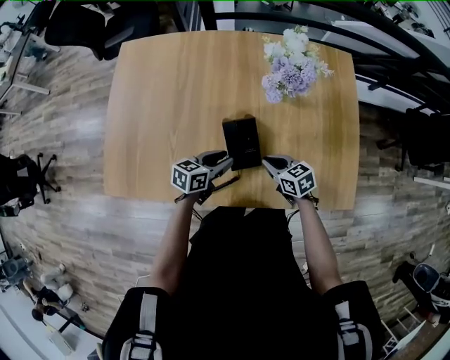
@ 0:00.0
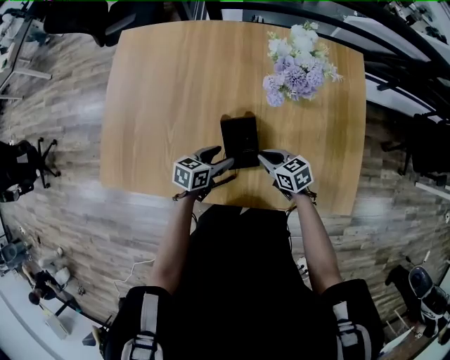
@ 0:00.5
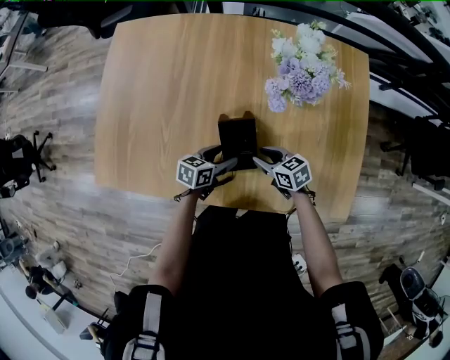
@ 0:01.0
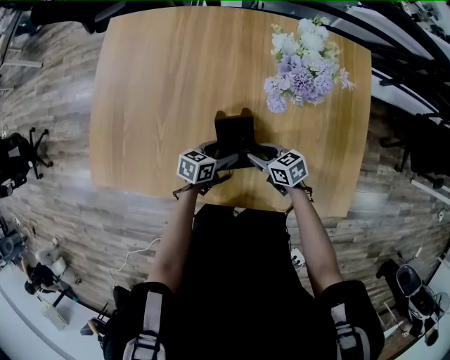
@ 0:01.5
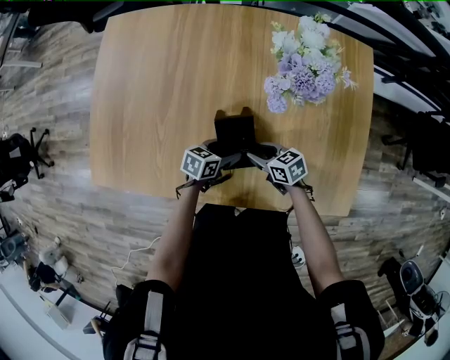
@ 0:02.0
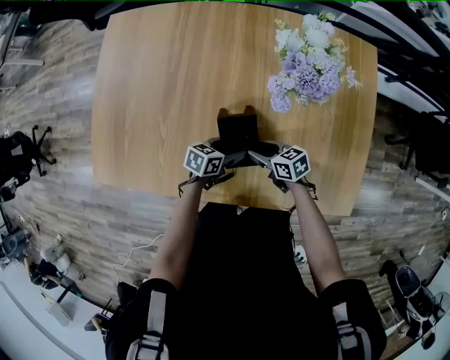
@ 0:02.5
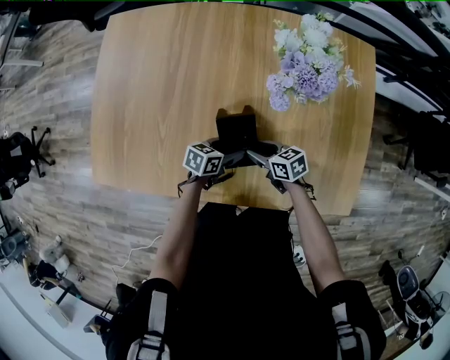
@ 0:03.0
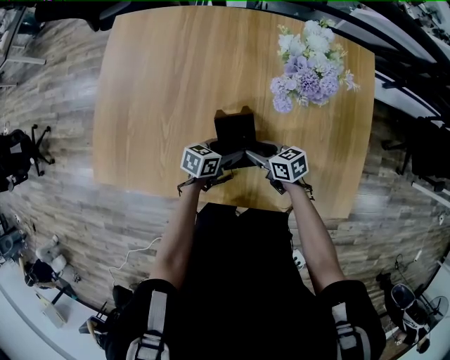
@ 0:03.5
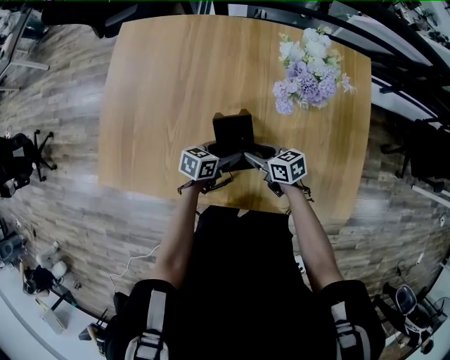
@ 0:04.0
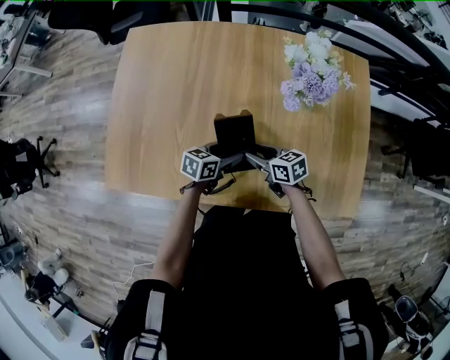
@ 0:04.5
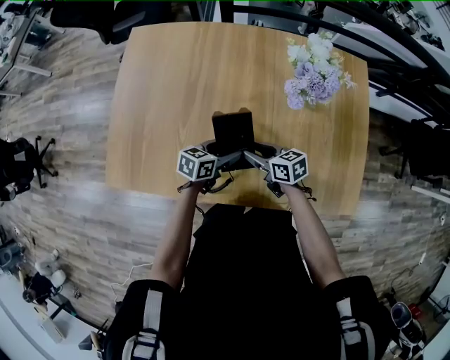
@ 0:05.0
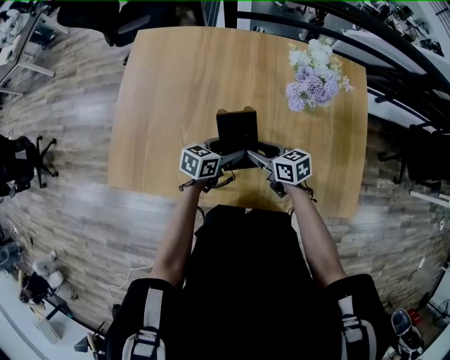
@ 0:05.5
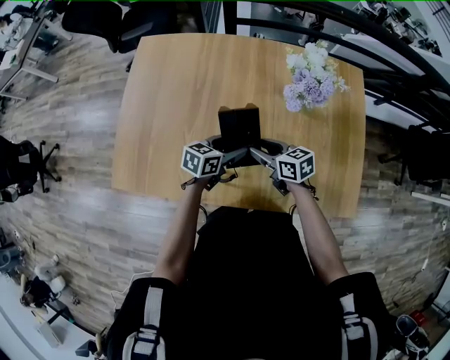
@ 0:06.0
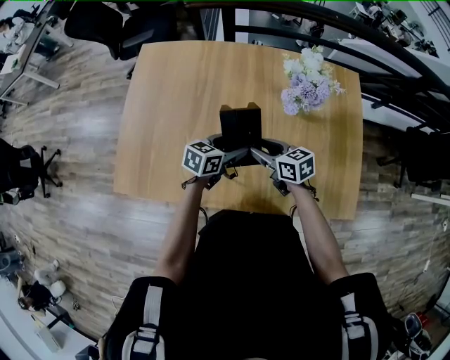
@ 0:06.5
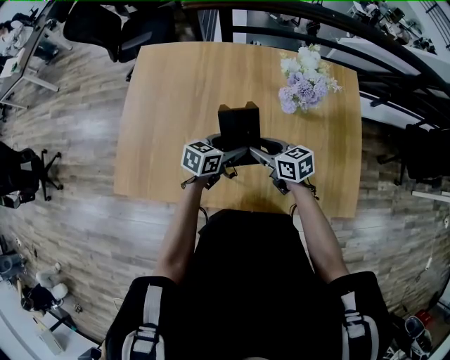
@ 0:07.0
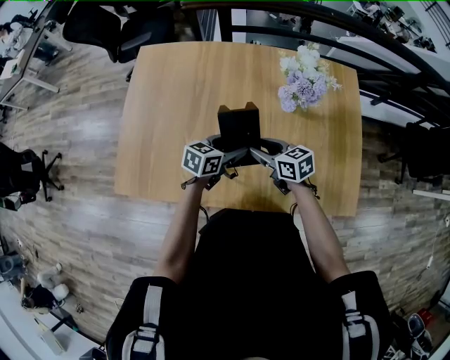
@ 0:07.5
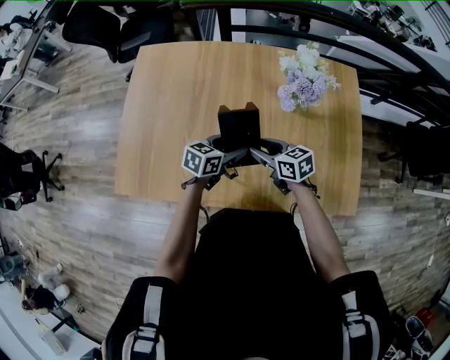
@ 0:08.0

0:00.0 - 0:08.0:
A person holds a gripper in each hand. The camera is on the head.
0:00.0 - 0:02.0: The right gripper goes some 5 cm downward, and opens; the left gripper goes about 10 cm downward, and opens.
0:02.0 - 0:04.0: The right gripper ends up roughly 5 cm from where it was; the left gripper moves some 5 cm.
0:04.0 - 0:06.0: The grippers both shift upward by roughly 10 cm.
0:06.0 - 0:08.0: There are only small adjustments of the grippers.

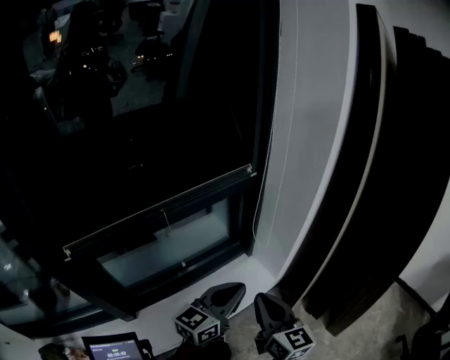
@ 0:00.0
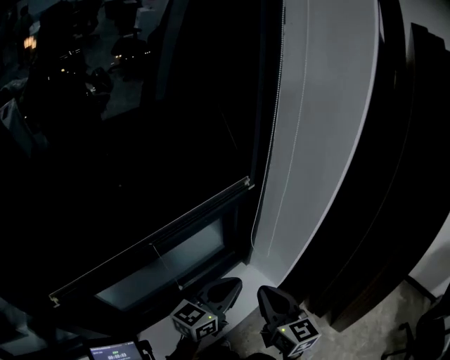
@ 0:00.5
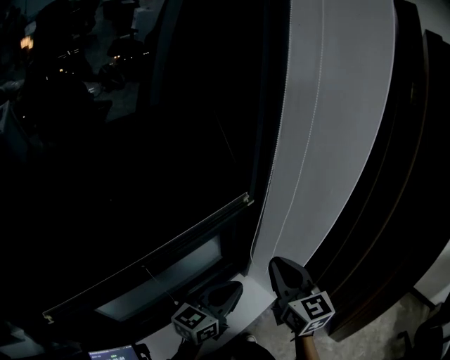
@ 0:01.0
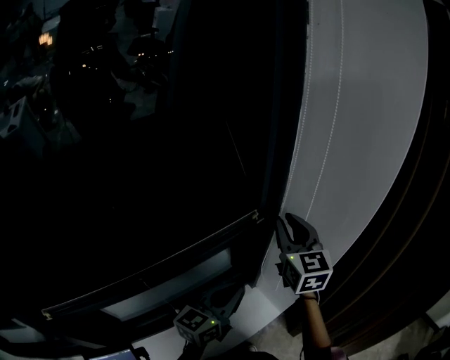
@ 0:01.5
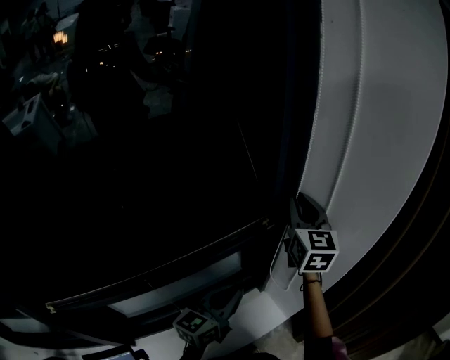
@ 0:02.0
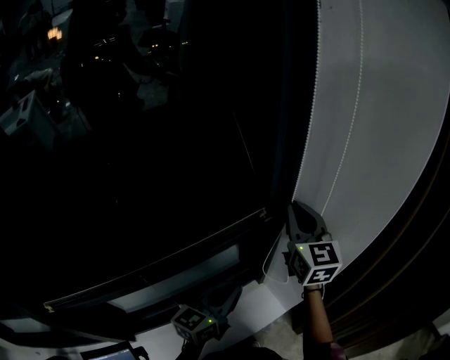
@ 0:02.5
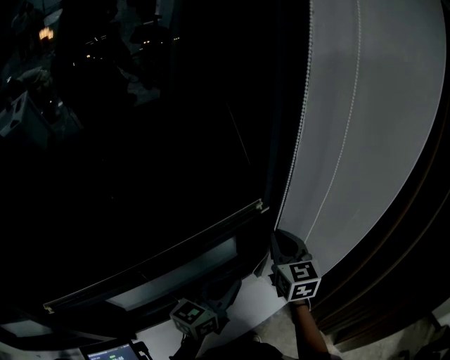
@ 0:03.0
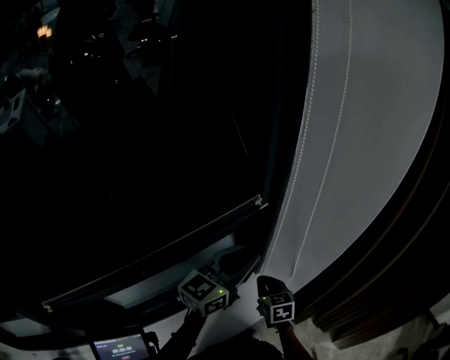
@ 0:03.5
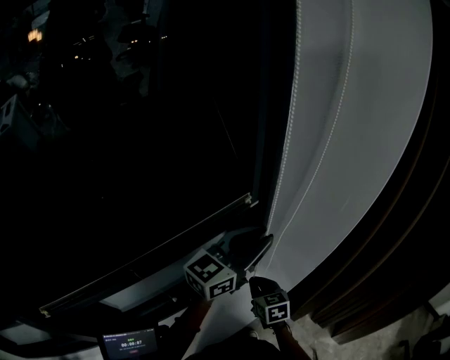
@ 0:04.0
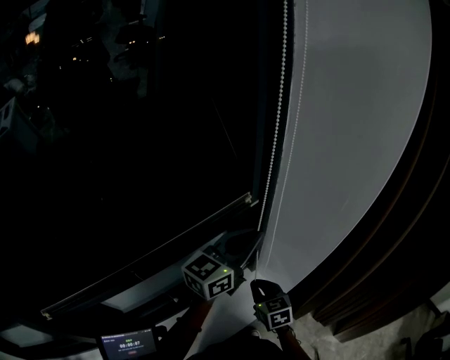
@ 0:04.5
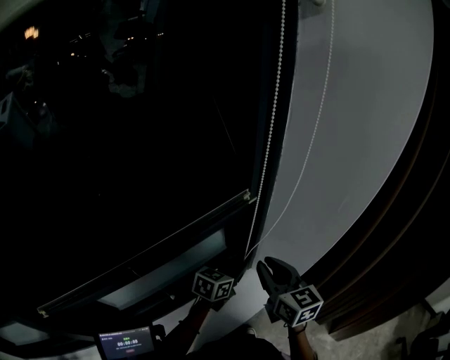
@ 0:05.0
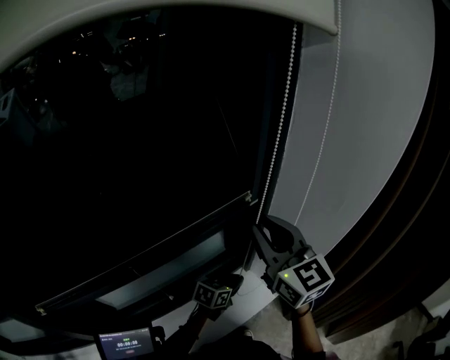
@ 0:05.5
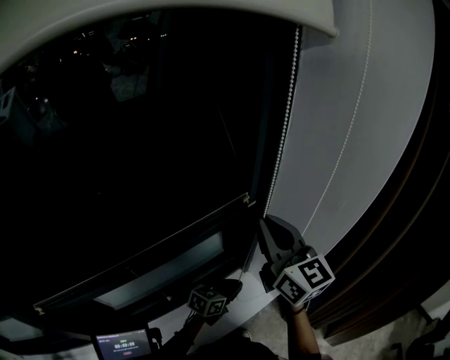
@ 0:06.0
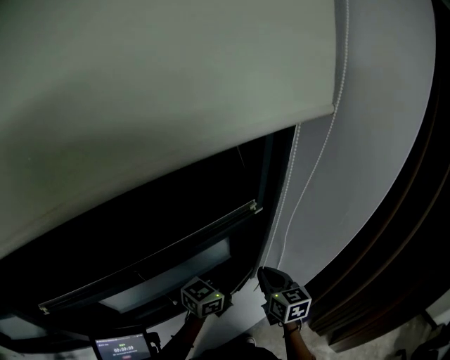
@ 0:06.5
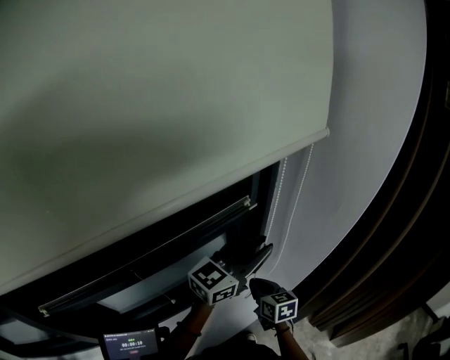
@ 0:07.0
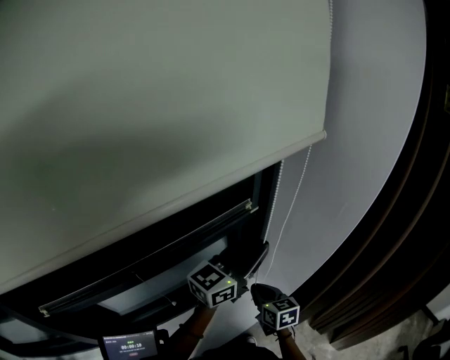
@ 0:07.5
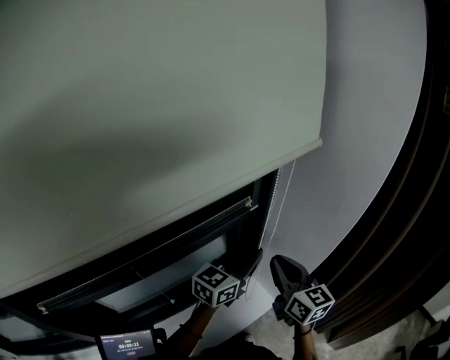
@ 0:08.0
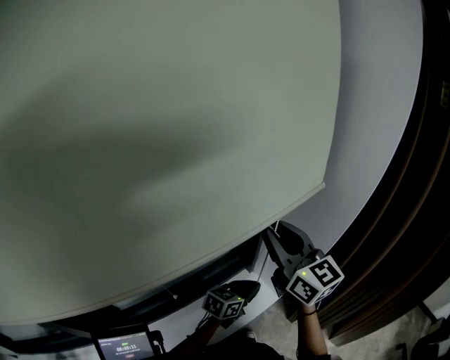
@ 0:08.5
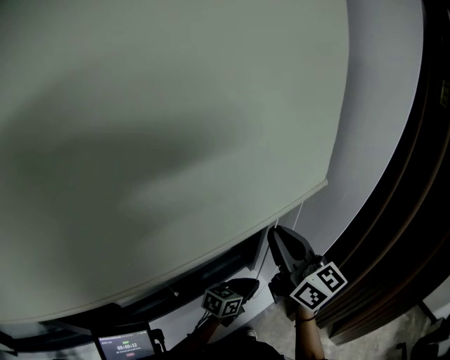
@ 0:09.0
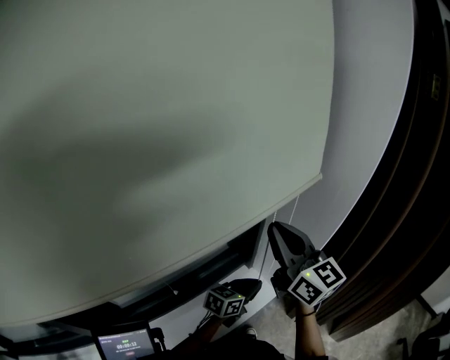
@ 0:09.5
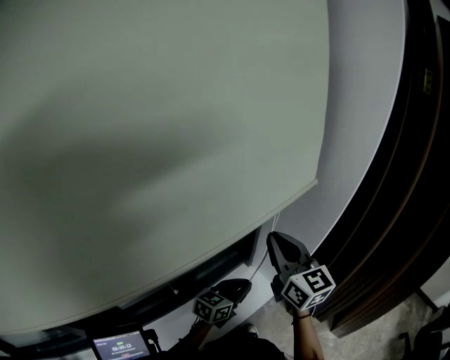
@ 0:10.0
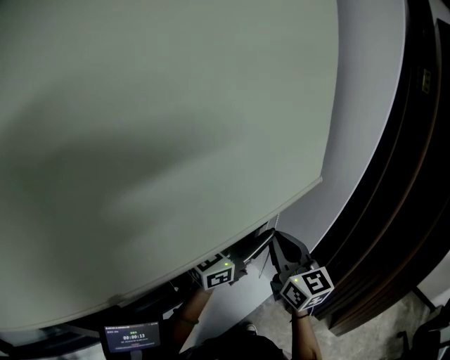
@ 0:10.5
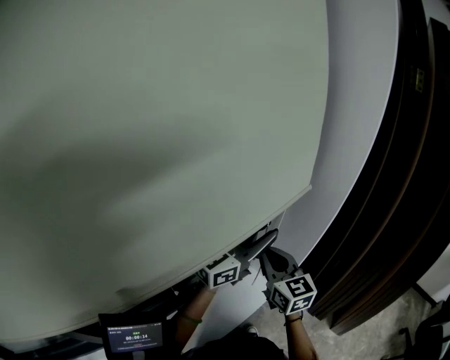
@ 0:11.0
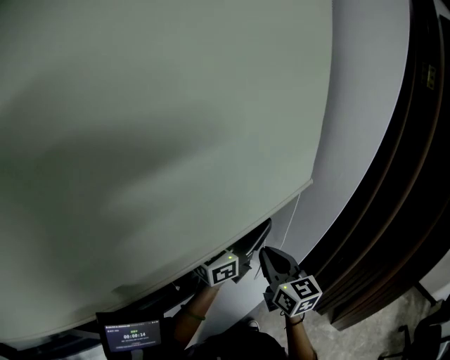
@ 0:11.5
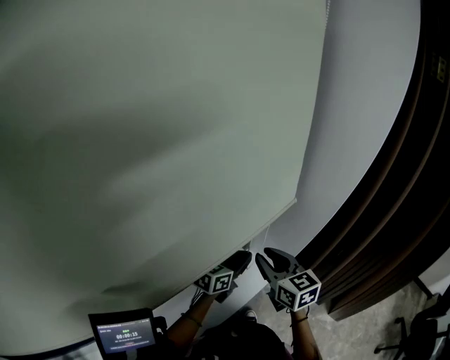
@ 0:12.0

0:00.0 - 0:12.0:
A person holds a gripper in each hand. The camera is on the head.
0:00.0 - 0:02.0: The left gripper moves forward, roughly 25 cm. The right gripper goes some 50 cm forward, and changes its angle by about 20 degrees.
0:02.0 - 0:04.0: The right gripper is displaced downward and backward by approximately 35 cm, and points its fingers some 30 degrees further downward, while the left gripper heads upward, to the right and forward, covering approximately 15 cm, changes its angle by about 20 degrees, and opens its fingers.
0:04.0 - 0:06.0: The left gripper moves downward, roughly 30 cm, tips its fingers downward by roughly 30 degrees, and closes up. Meanwhile the right gripper moves upward, some 30 cm, and points its fingers approximately 40 degrees further upward.
0:06.0 - 0:08.0: The left gripper shifts approximately 20 cm upward, and changes its angle by approximately 30 degrees; the right gripper moves downward and to the right, some 15 cm.
0:08.0 - 0:10.0: The left gripper travels downward and backward by about 20 cm, and turns by approximately 20 degrees.
0:10.0 - 0:12.0: The left gripper moves roughly 25 cm upward and comes back, while the right gripper moves downward and backward, roughly 15 cm.

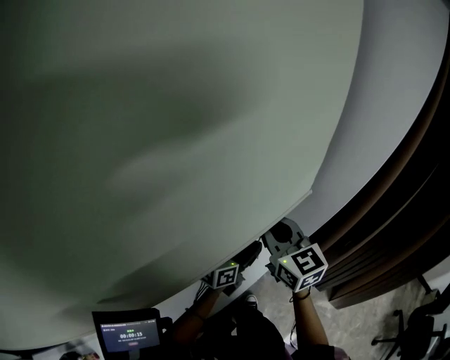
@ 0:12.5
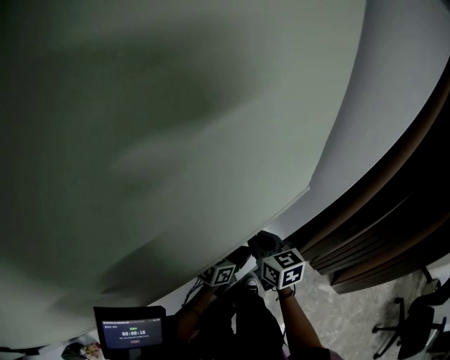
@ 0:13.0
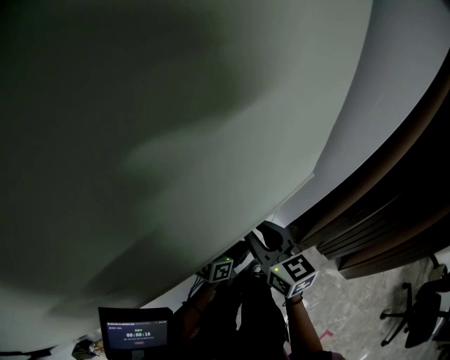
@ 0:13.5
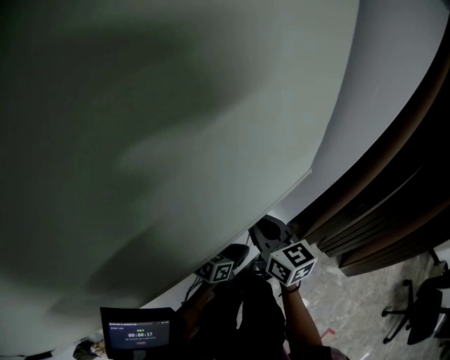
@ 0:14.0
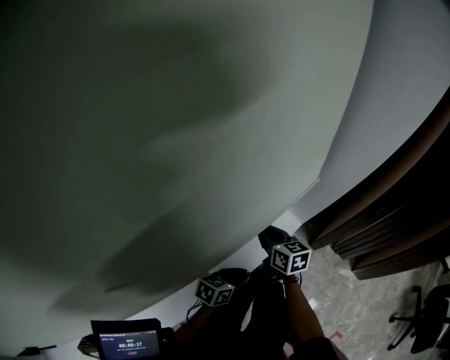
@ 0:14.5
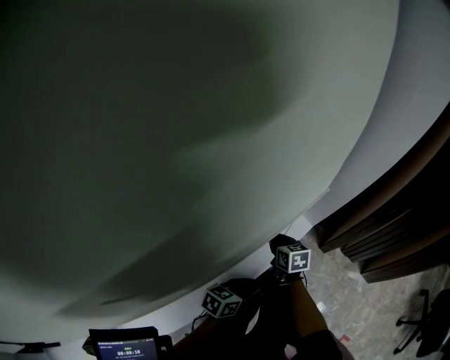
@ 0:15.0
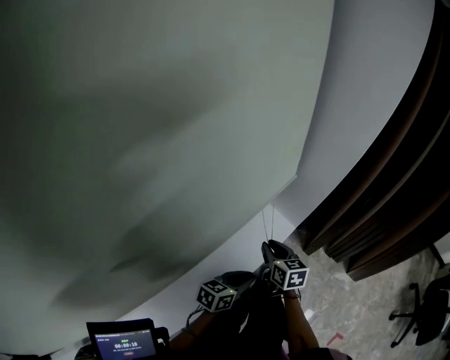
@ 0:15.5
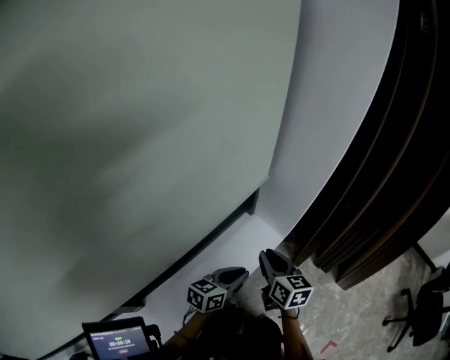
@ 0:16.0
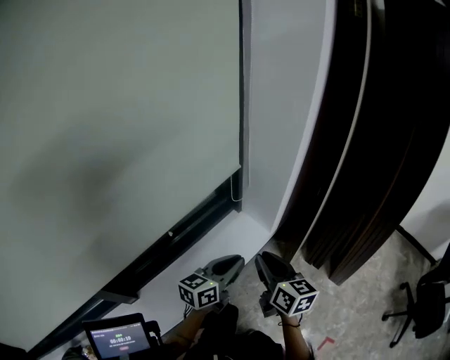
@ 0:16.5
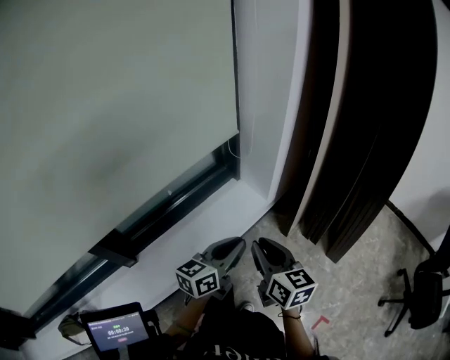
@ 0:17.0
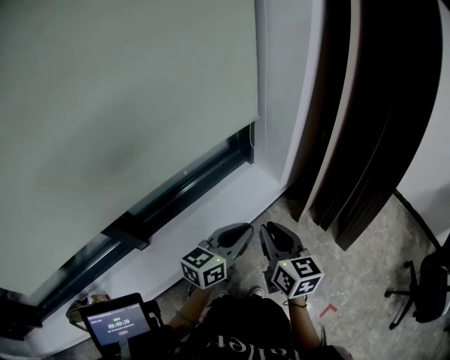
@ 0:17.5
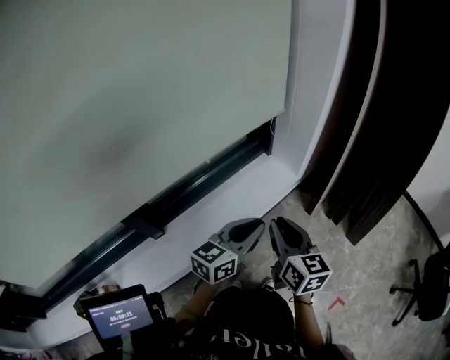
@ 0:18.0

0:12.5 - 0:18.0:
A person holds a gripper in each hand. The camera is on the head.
0:12.5 - 0:14.5: The left gripper travels backward and downward by roughly 25 cm, and turns by approximately 30 degrees, while the right gripper goes up and down, some 25 cm each way, reversing 2 times, and swivels about 40 degrees.
0:14.5 - 0:16.0: The right gripper moves backward and to the right, roughly 15 cm. The left gripper ends up roughly 5 cm from where it was, and turns by some 20 degrees.
0:16.0 - 0:18.0: The grippers both shift backward by approximately 30 cm. The left gripper swivels approximately 20 degrees.

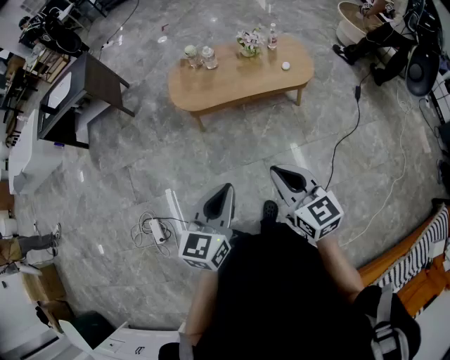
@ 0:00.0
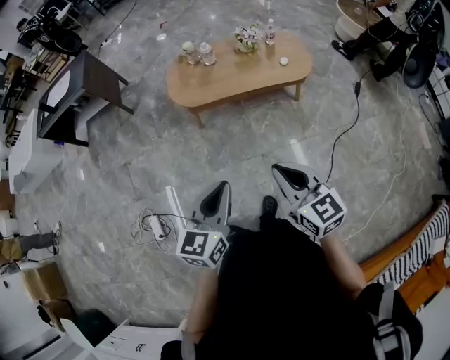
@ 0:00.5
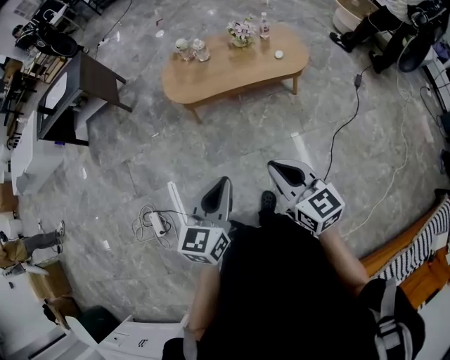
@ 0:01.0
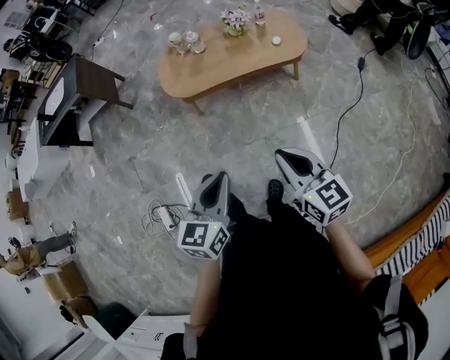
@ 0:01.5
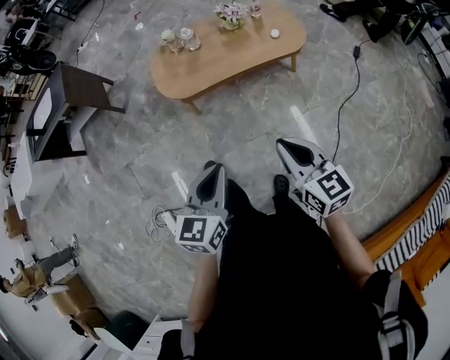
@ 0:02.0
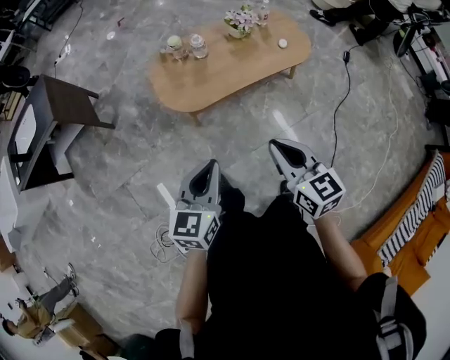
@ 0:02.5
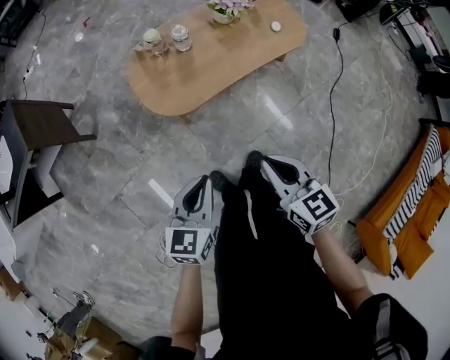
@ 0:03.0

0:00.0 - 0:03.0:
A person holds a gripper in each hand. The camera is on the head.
0:00.0 - 0:01.5: The right gripper goes roughly 5 cm to the right.
0:01.5 - 0:03.0: The right gripper shifts roughly 35 cm to the left and forward, and swivels about 20 degrees. The left gripper is displaced to the left, forward and downward by approximately 40 cm, and turns by roughly 20 degrees.
